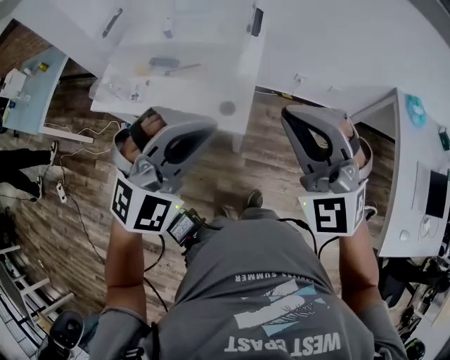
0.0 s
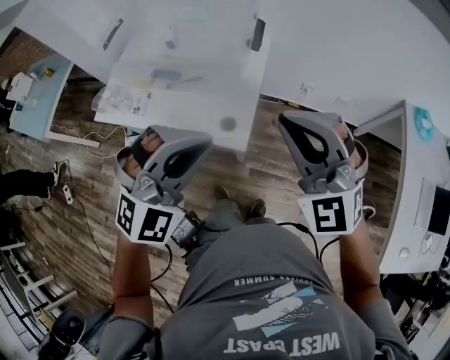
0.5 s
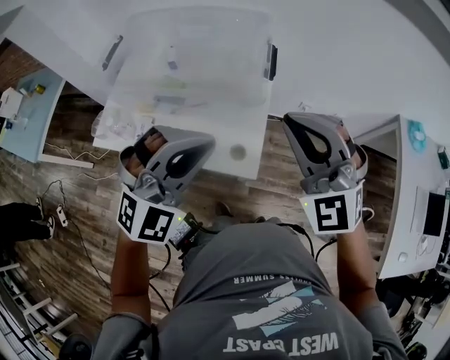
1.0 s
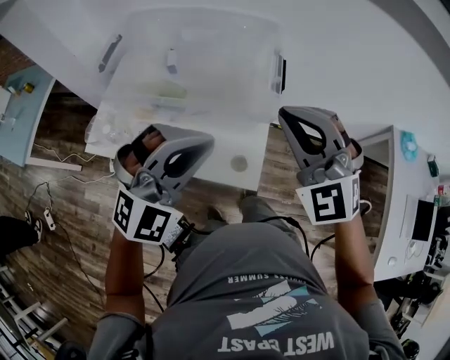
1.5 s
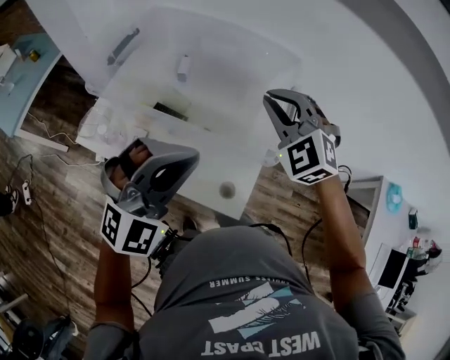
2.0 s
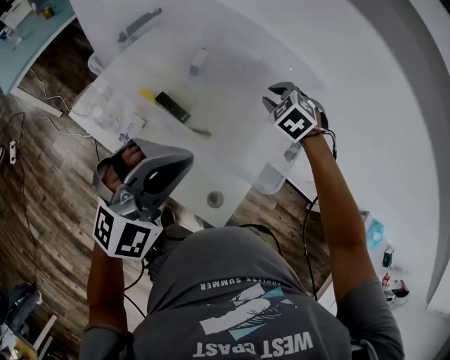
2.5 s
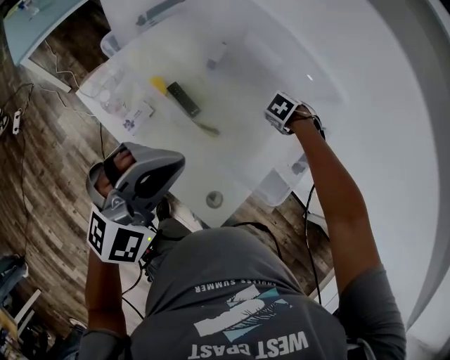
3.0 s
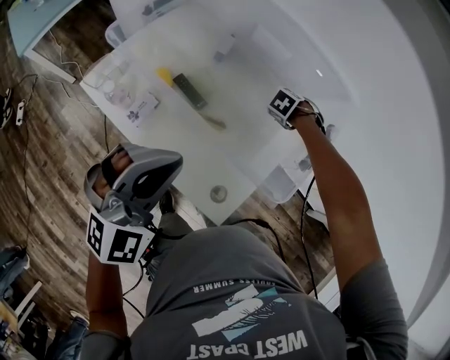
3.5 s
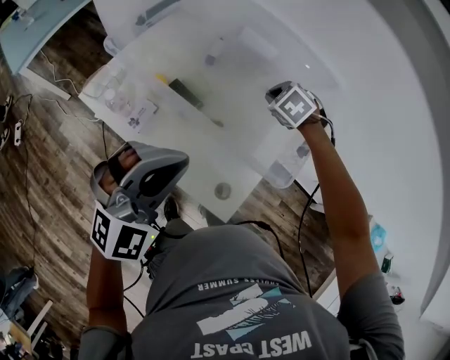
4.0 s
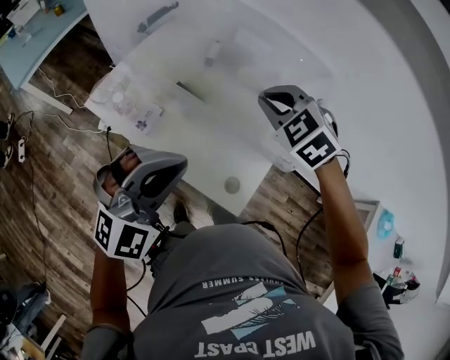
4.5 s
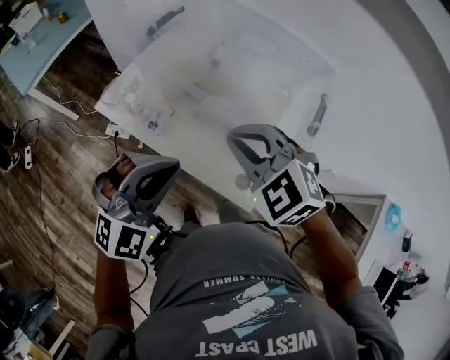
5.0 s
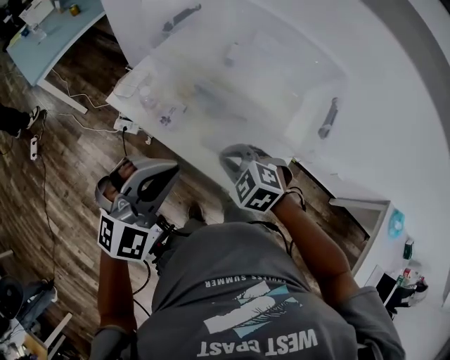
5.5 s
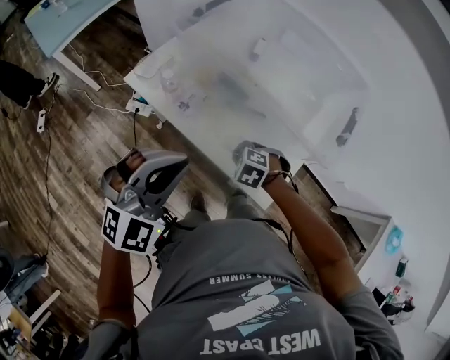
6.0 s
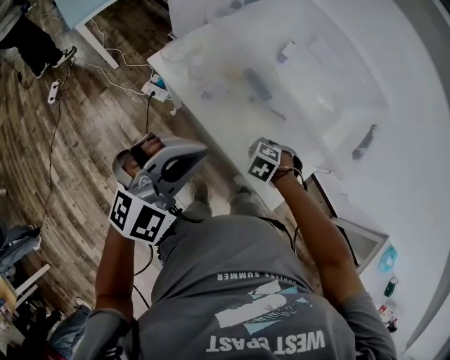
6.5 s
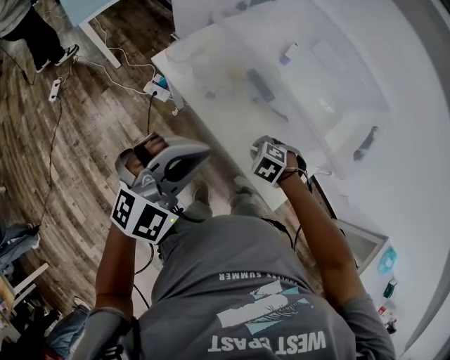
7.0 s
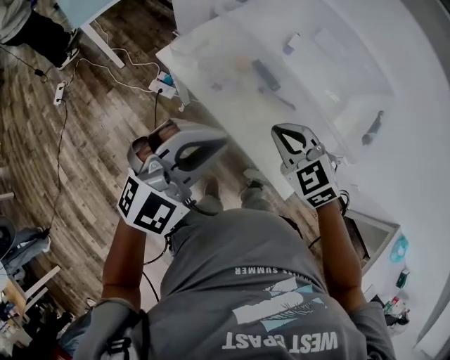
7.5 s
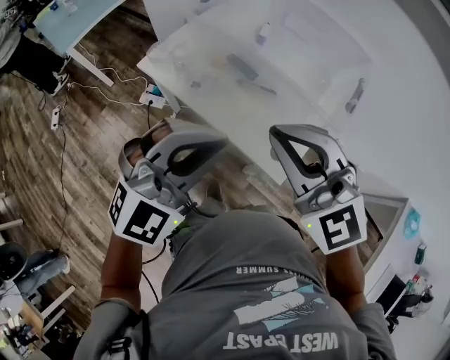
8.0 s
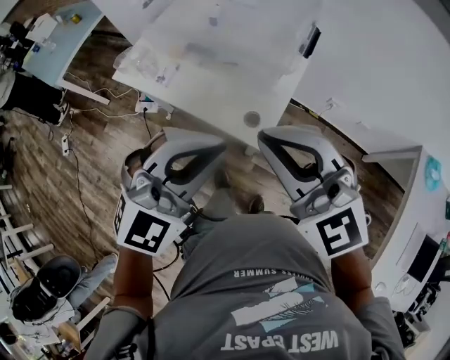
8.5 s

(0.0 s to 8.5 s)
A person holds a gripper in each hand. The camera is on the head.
0.0 s - 2.0 s: Both grippers move forward and to the left, approximately 35 cm. The right gripper swivels some 20 degrees.
2.0 s - 4.0 s: The right gripper is displaced downward by about 20 cm, angles its fingers downward, by some 40 degrees, and opens, then closes once more. The left gripper shifts by roughly 5 cm.
4.0 s - 6.5 s: The left gripper changes place by some 15 cm. The right gripper ends up roughly 35 cm from where it was, and swivels some 30 degrees.
6.5 s - 8.5 s: The right gripper goes about 40 cm upward, and tips its fingers upward by about 70 degrees, while the left gripper changes place by some 25 cm, and turns by about 20 degrees.

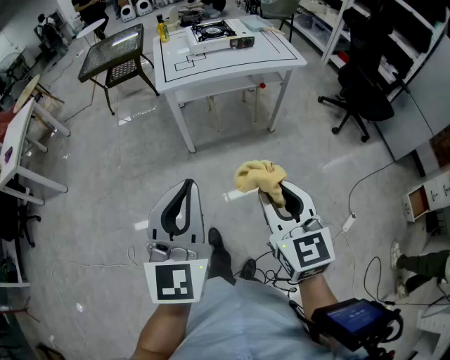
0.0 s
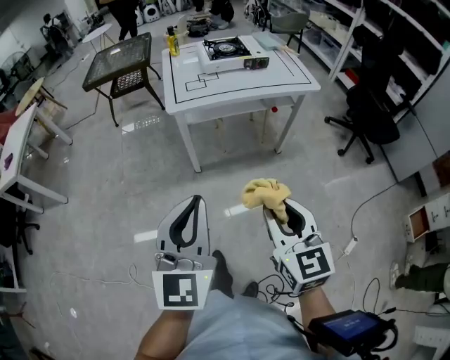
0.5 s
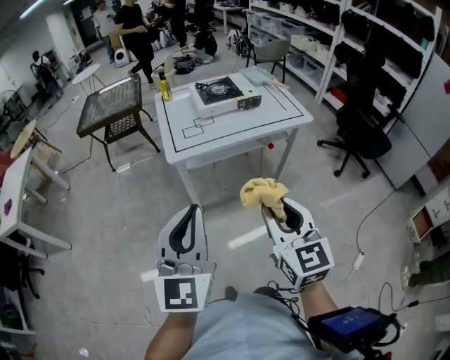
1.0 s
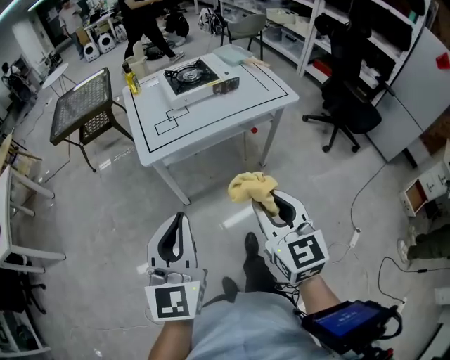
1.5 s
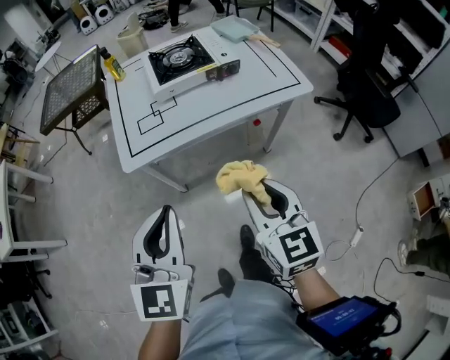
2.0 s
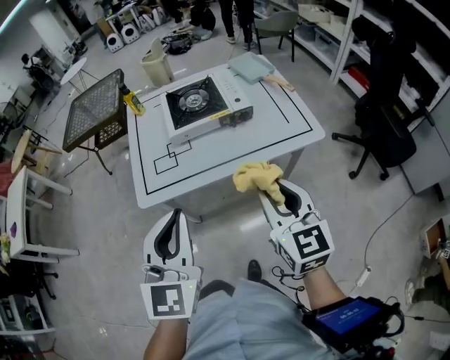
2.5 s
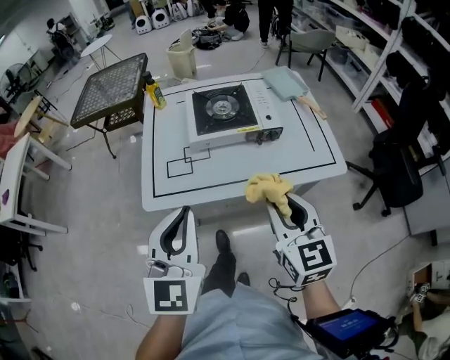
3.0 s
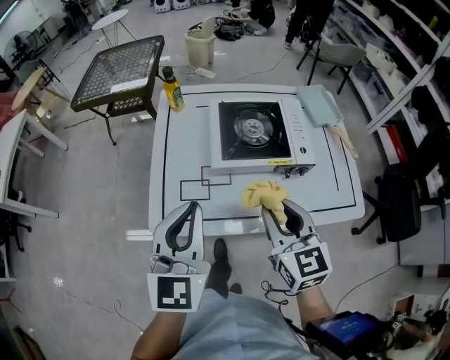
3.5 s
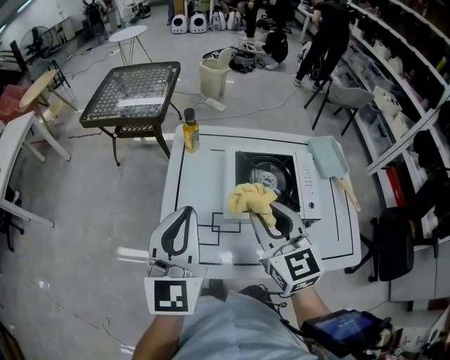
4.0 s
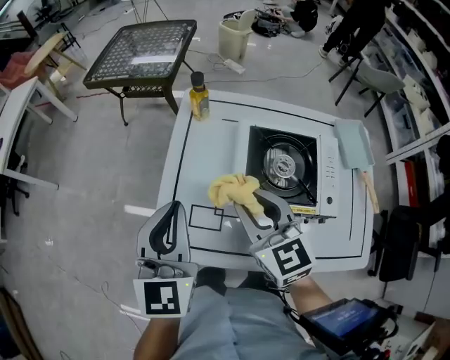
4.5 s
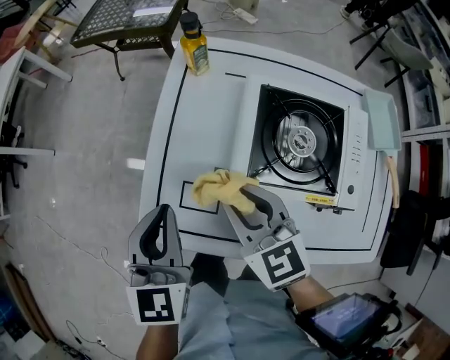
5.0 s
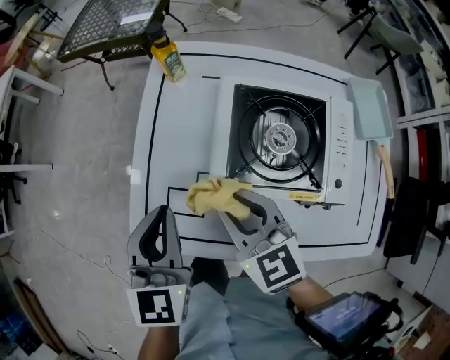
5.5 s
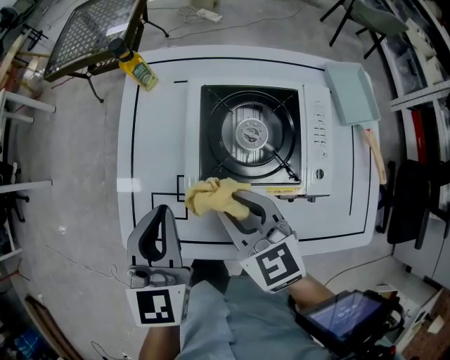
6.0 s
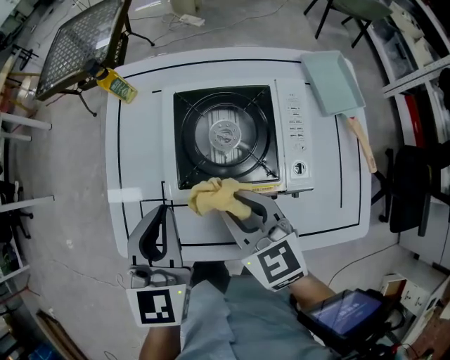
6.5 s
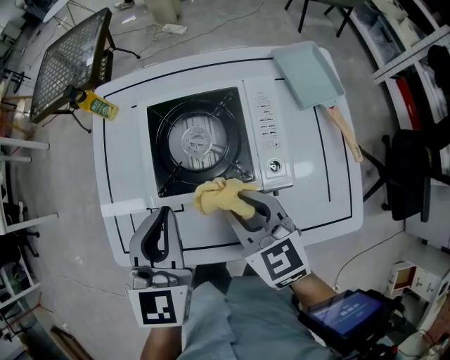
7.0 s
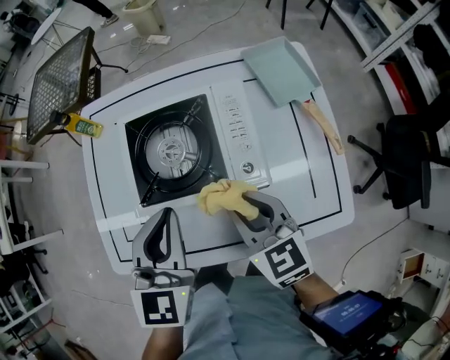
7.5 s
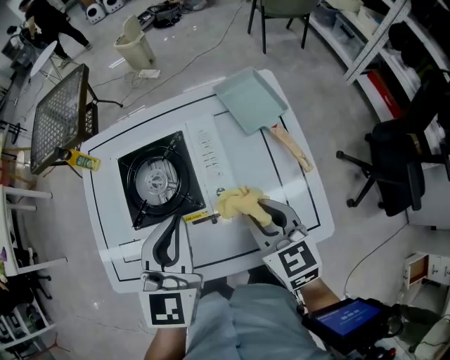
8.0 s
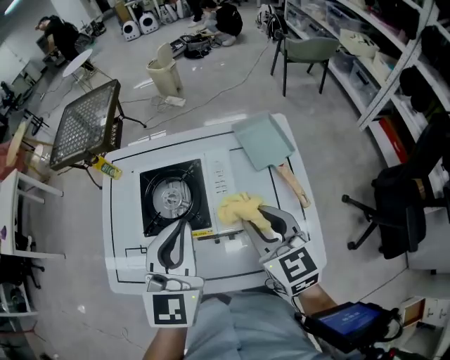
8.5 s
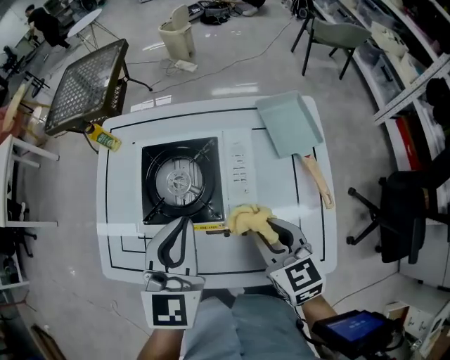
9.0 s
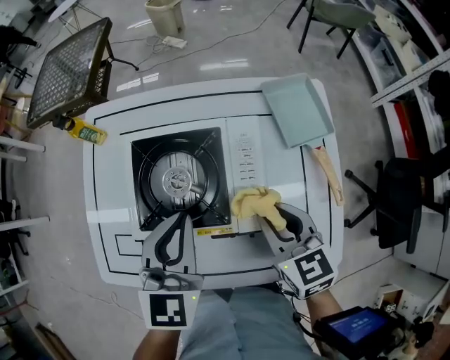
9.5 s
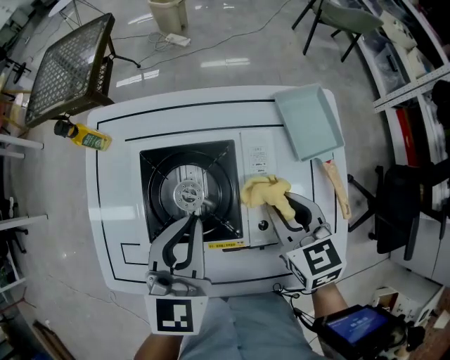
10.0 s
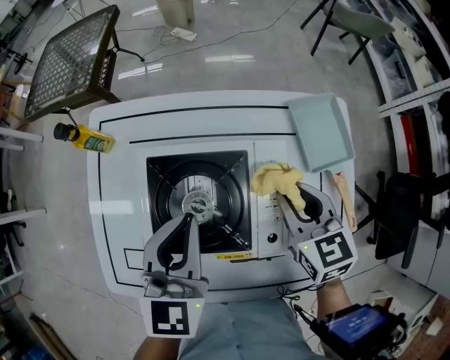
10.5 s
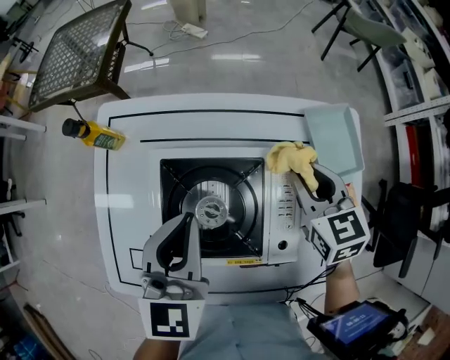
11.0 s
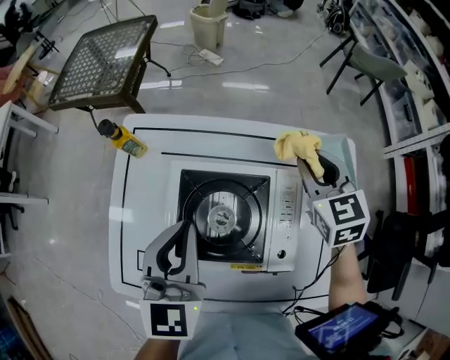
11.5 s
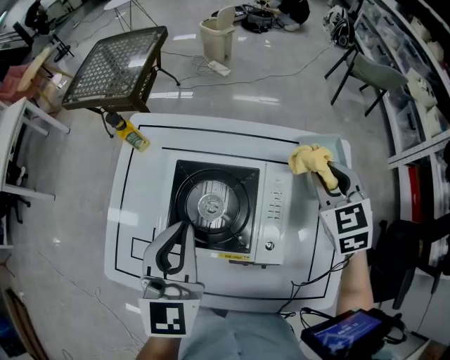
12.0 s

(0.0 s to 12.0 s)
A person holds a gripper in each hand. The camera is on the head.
0.0 s - 2.0 s: The two grippers travel together, forward, roughly 40 cm.
2.0 s - 4.0 s: The pair of grippers is taken forward, some 40 cm. The right gripper rotates approximately 30 degrees; the left gripper rotates some 20 degrees.
4.0 s - 6.0 s: The right gripper is displaced downward by some 15 cm, and turns by approximately 20 degrees. The left gripper is displaced downward and to the right by some 15 cm.
6.0 s - 8.0 s: Both grippers travel together to the right, approximately 25 cm. The right gripper swivels roughly 20 degrees.
8.0 s - 10.0 s: The left gripper is displaced forward and to the left by approximately 10 cm; the right gripper heads forward, covering approximately 15 cm.
10.0 s - 12.0 s: The left gripper is displaced upward and to the left by some 10 cm. Meanwhile the right gripper moves forward, upward and to the right, some 15 cm, and turns by roughly 30 degrees.

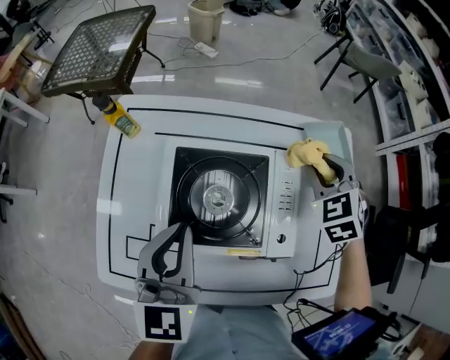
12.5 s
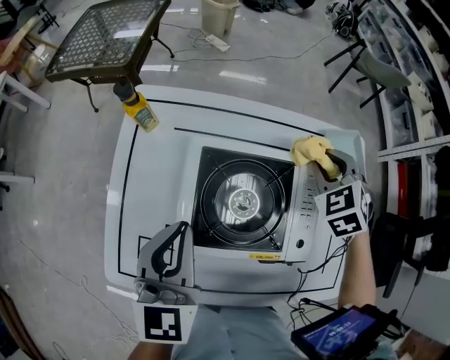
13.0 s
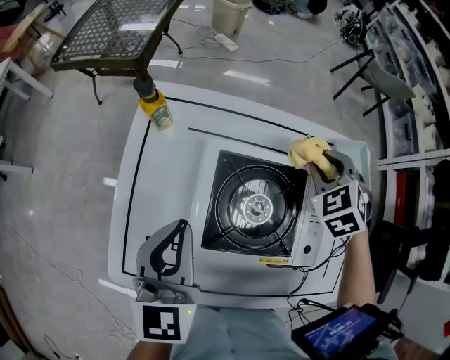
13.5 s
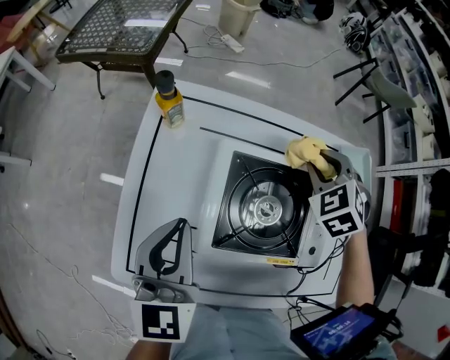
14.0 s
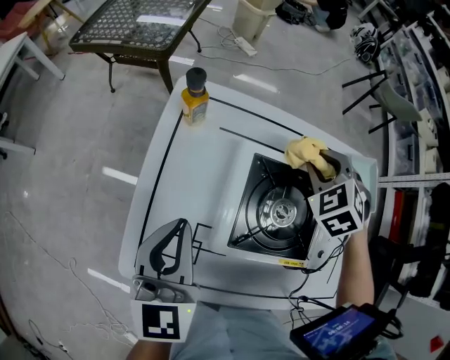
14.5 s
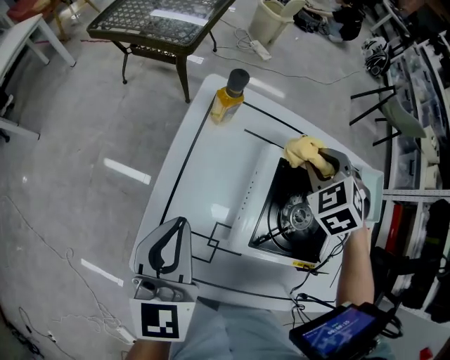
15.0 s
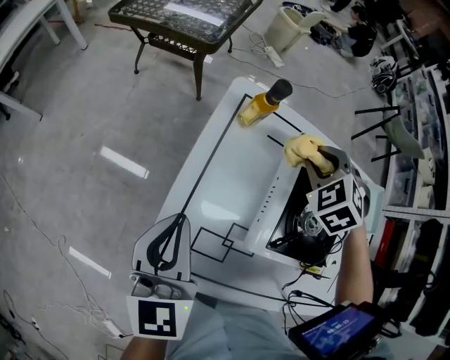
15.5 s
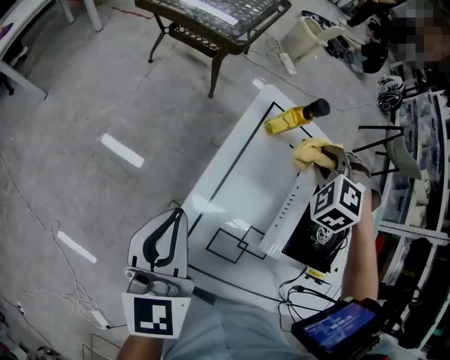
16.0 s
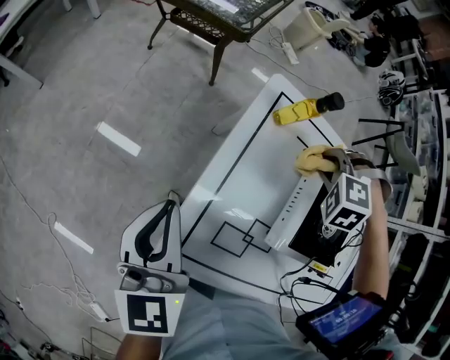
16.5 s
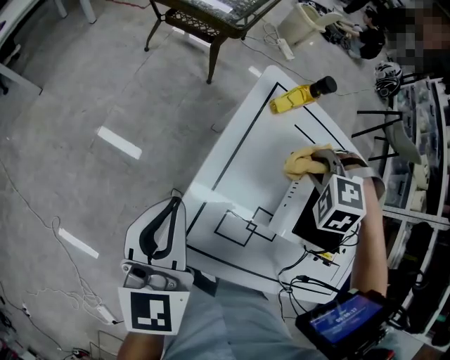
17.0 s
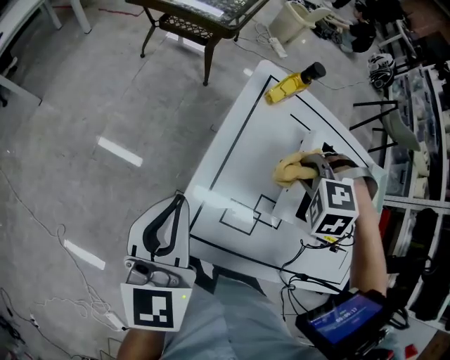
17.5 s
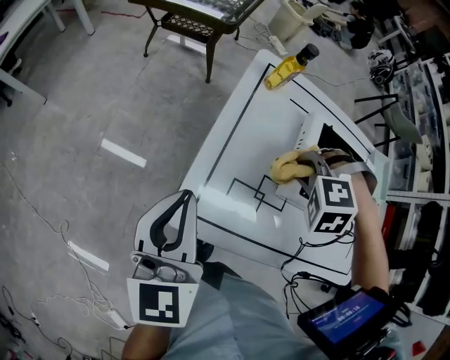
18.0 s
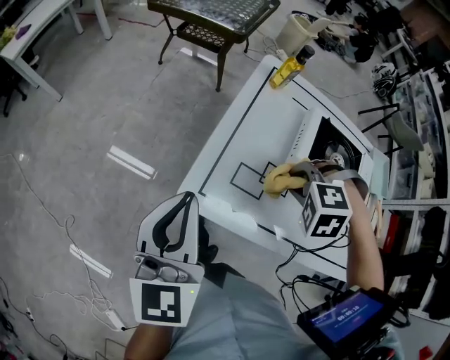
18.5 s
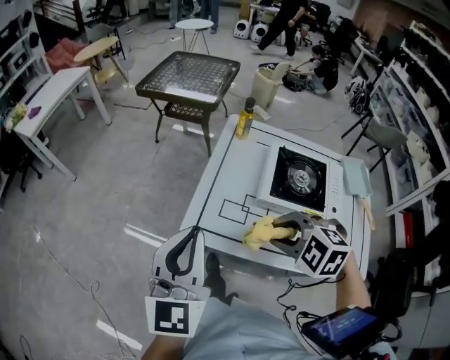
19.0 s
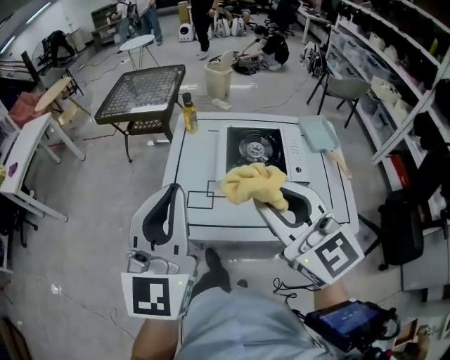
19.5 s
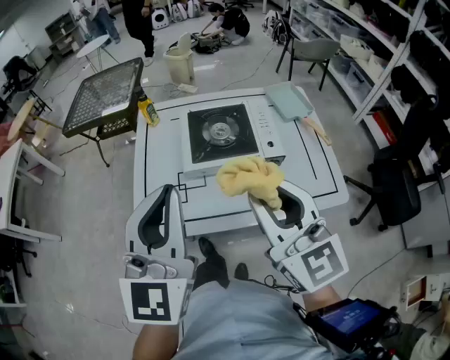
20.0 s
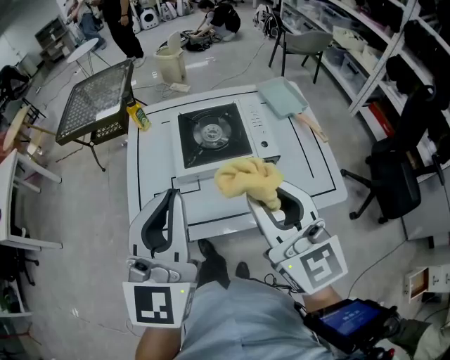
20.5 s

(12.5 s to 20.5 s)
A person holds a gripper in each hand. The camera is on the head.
12.5 s - 14.5 s: Both grippers travel together to the left, some 20 cm.
14.5 s - 16.5 s: The two grippers go about 20 cm to the left. The right gripper twists roughly 50 degrees counterclockwise, seen from behind.
16.5 s - 18.5 s: The left gripper changes place by approximately 20 cm. The right gripper moves approximately 30 cm.
18.5 s - 20.5 s: The left gripper shifts by roughly 35 cm, and changes its angle by about 40 degrees, while the right gripper shifts by approximately 35 cm, and points its fingers some 80 degrees further upward.
